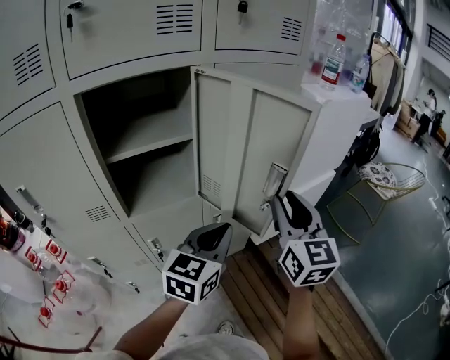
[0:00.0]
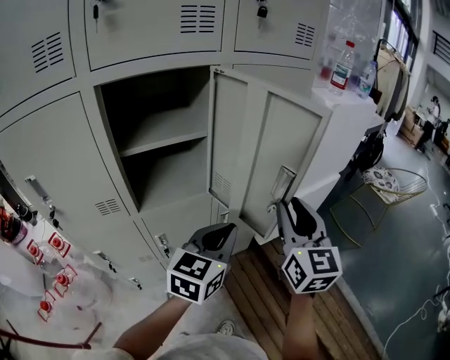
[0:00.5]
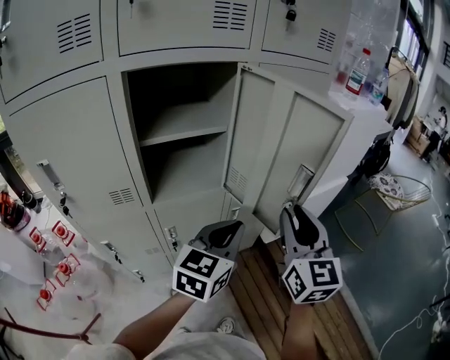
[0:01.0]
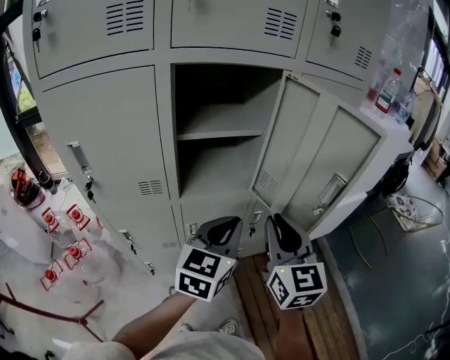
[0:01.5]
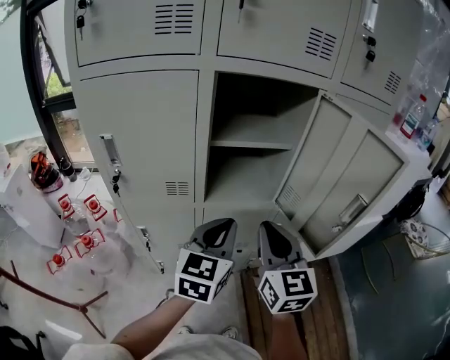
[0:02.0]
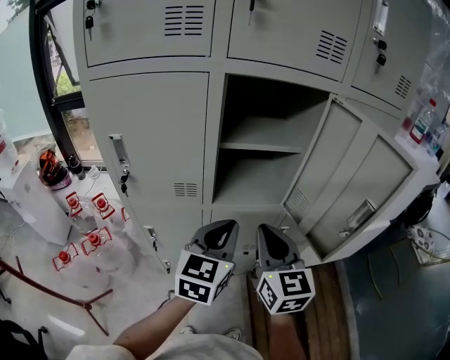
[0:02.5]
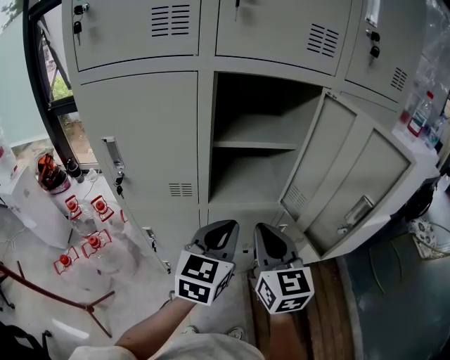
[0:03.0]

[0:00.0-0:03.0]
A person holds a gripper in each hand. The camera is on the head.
0:00.0 to 0:01.5: The right gripper shifts about 15 cm to the left and backward. The left gripper is displaced to the left by some 10 cm.
0:01.5 to 0:03.0: The grippers both shift to the left by roughly 10 cm.

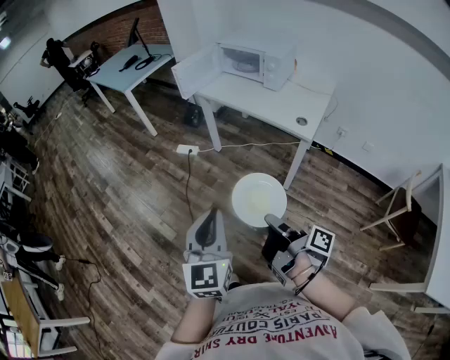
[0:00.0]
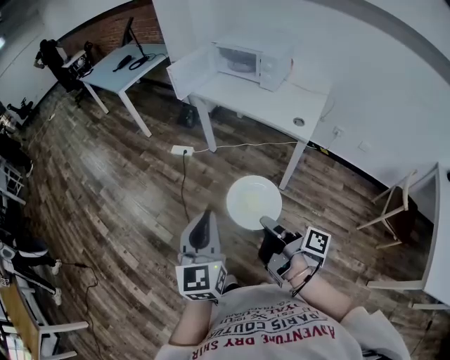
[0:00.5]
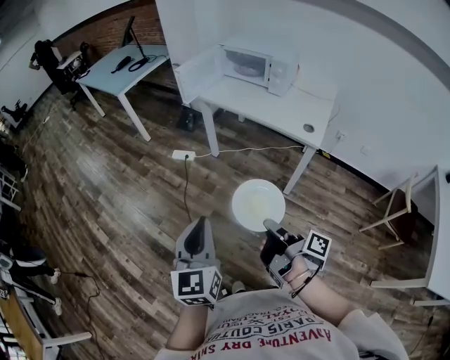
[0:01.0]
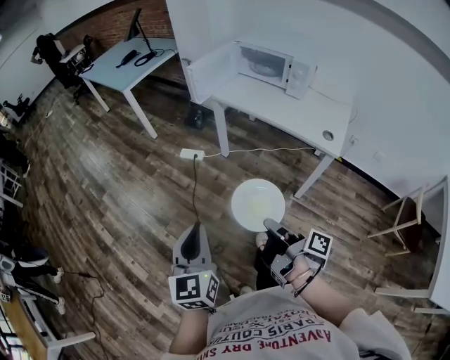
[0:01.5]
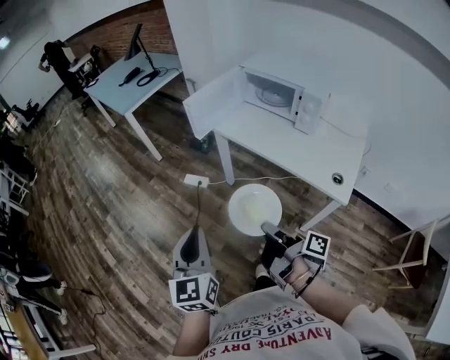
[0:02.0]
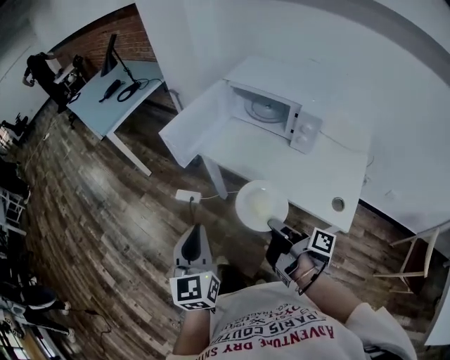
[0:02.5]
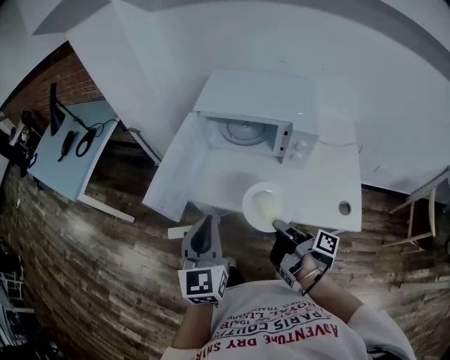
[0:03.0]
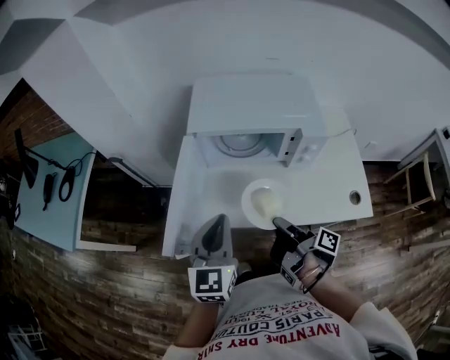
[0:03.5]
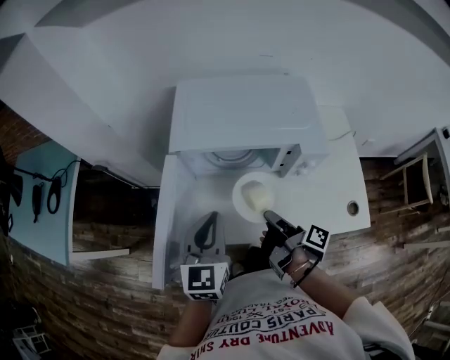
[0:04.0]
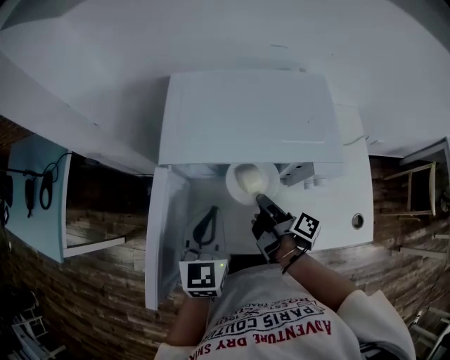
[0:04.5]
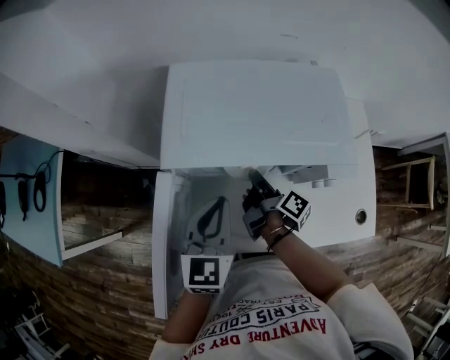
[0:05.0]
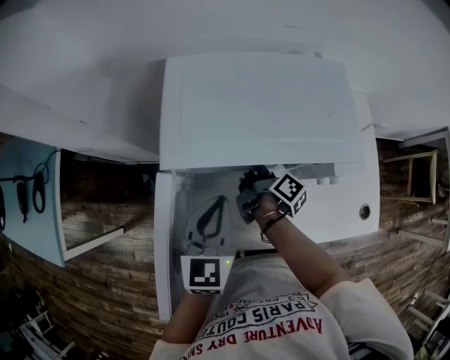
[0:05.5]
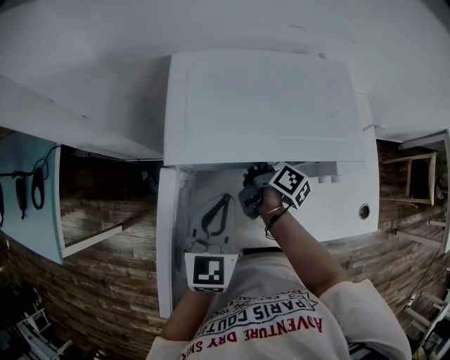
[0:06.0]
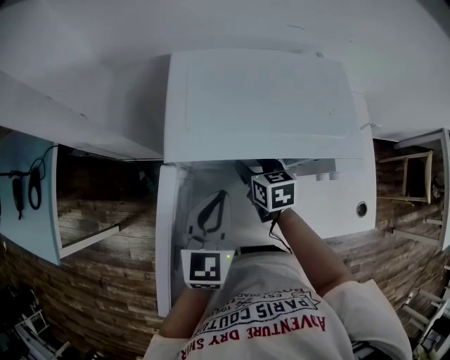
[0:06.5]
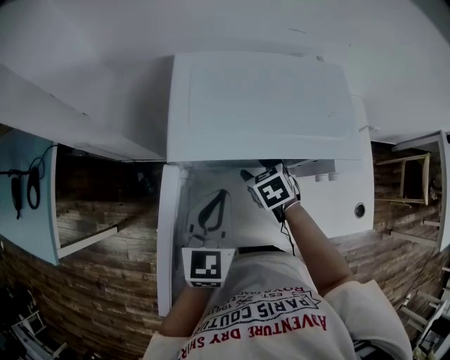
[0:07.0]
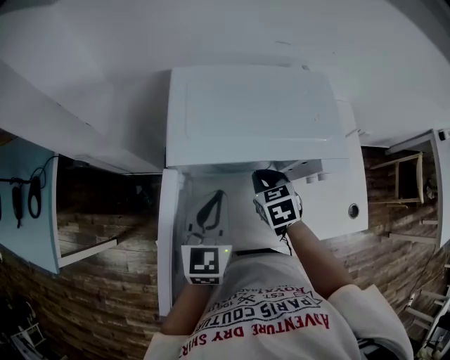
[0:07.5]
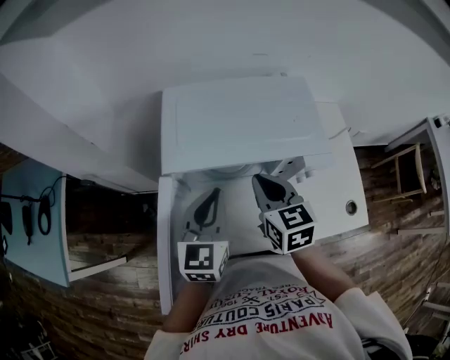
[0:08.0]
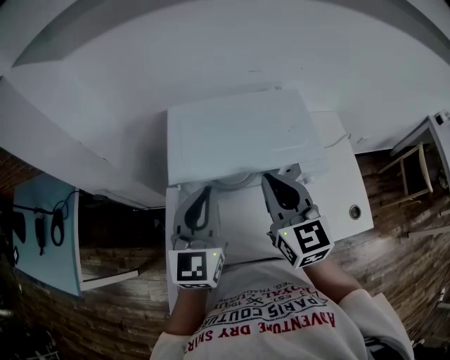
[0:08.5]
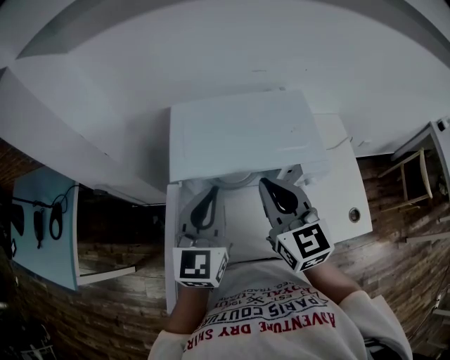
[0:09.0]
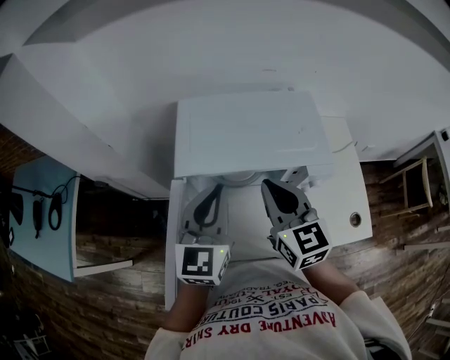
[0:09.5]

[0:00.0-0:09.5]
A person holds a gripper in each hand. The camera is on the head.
0:00.0 to 0:02.0: The left gripper changes place by about 35 cm.
0:02.0 to 0:04.0: The left gripper moves about 60 cm, and turns by approximately 50 degrees.
0:04.0 to 0:05.5: The left gripper moves roughly 10 cm.
0:07.5 to 0:09.5: The left gripper travels upward by some 10 cm.

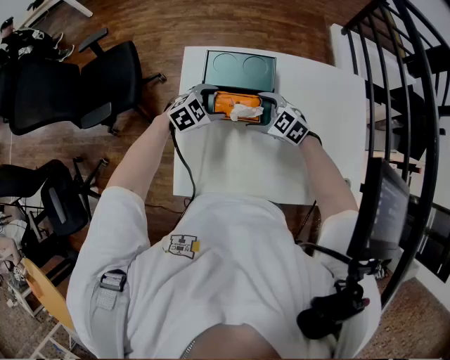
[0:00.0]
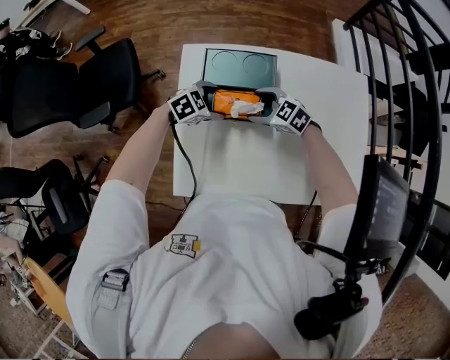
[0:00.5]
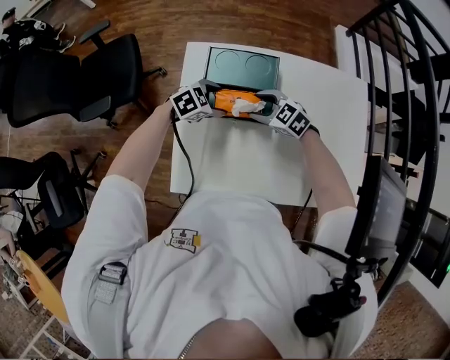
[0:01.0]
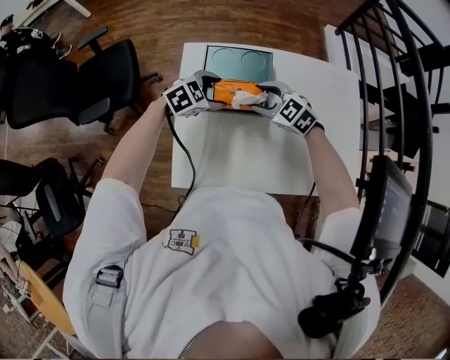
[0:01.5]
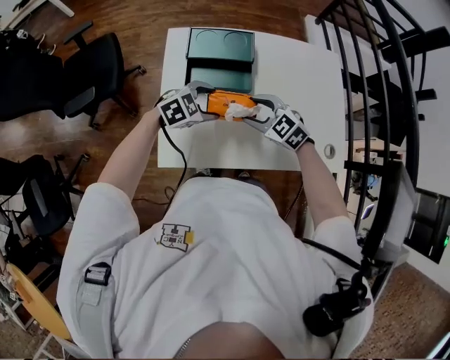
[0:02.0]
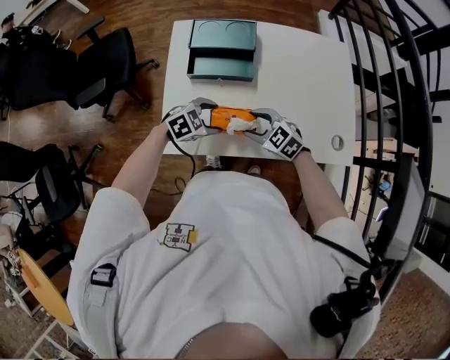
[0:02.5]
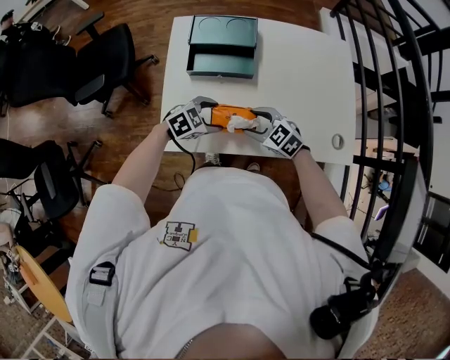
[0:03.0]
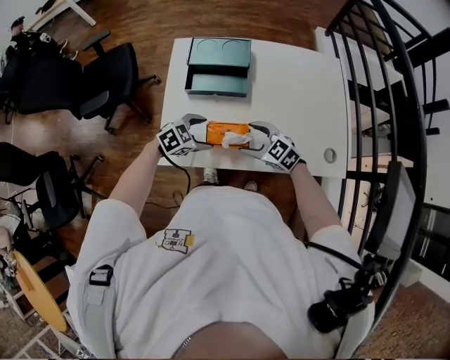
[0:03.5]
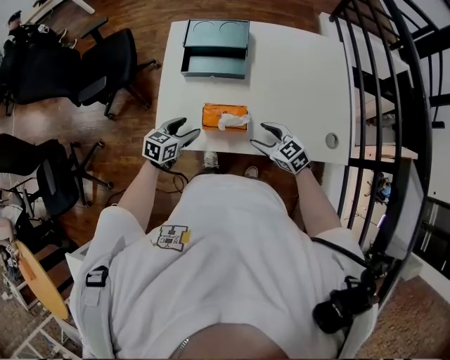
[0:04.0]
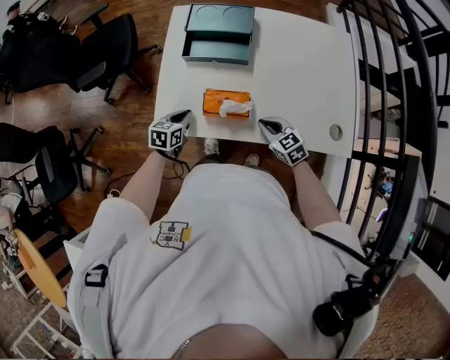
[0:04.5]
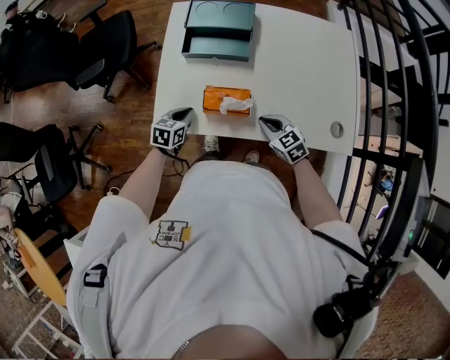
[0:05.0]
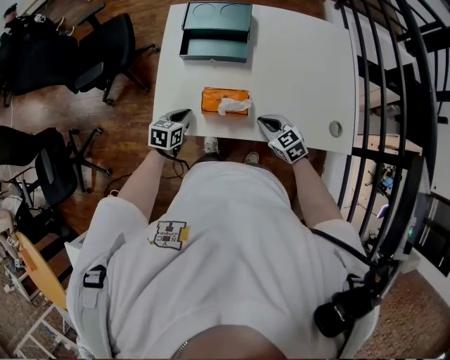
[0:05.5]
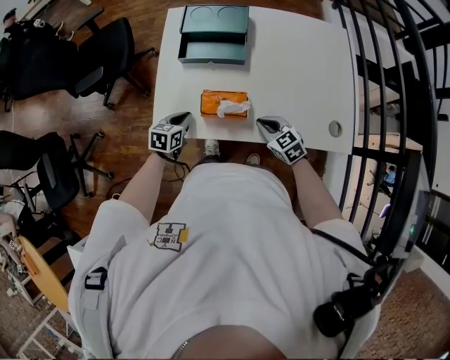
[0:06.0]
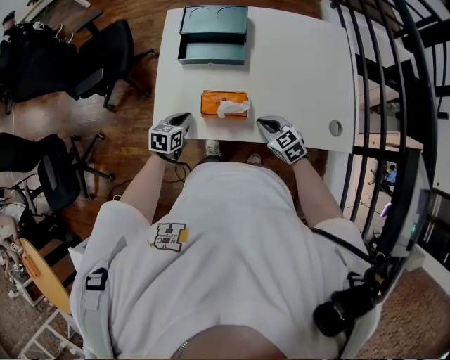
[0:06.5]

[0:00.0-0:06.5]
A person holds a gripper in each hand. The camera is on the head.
0:00.0 to 0:02.0: The left gripper ends up some 15 cm from where it was. Meanwhile the right gripper ends up roughly 15 cm from where it was, and closes up.
0:02.0 to 0:04.5: The right gripper ends up roughly 20 cm from where it was, and closes its fingers, while the left gripper changes place by roughly 20 cm, rotates around the line of its fingers by approximately 50 degrees, counterclockwise from behind, and closes.
0:04.5 to 0:06.5: Both grippers stay about where they are.

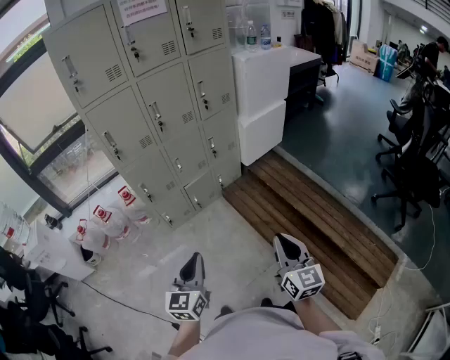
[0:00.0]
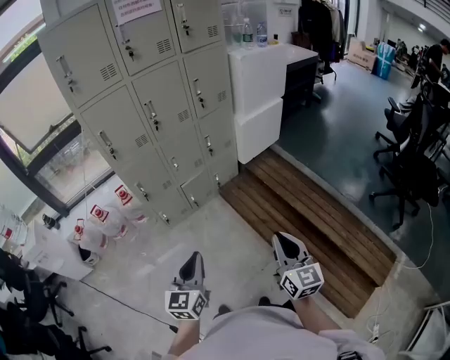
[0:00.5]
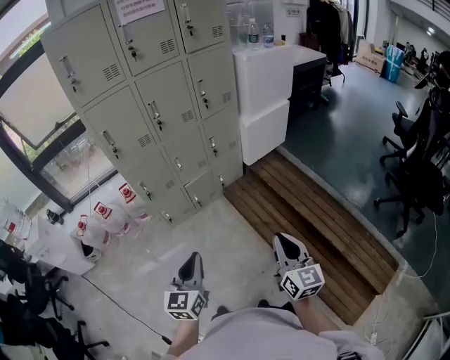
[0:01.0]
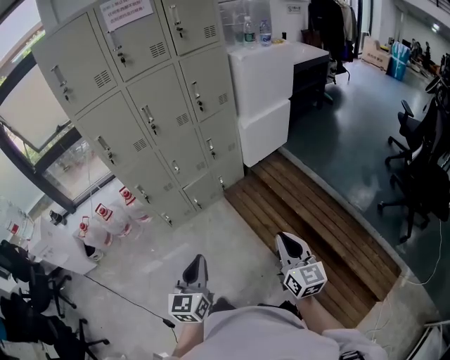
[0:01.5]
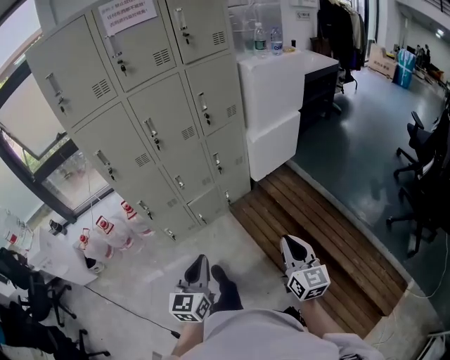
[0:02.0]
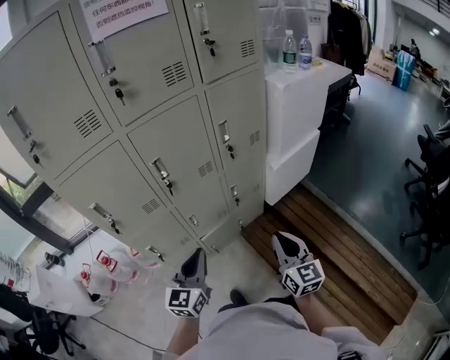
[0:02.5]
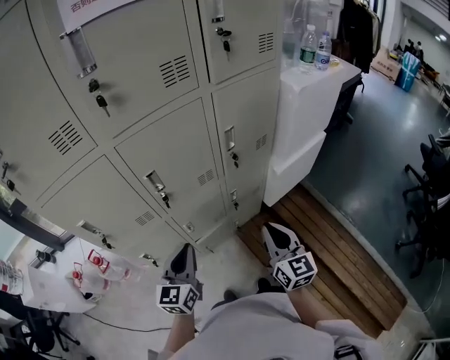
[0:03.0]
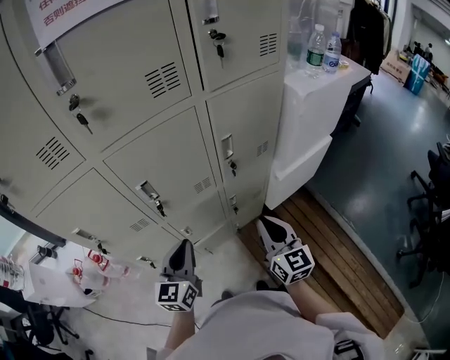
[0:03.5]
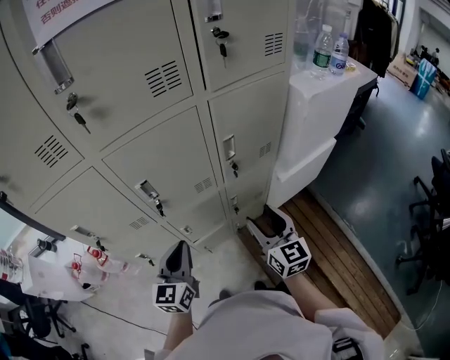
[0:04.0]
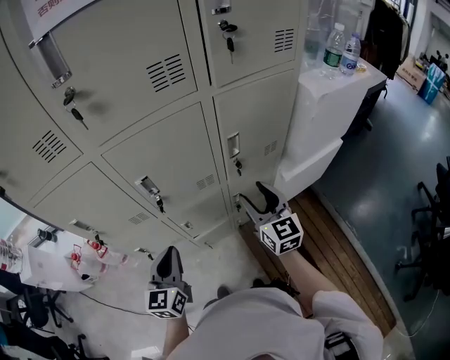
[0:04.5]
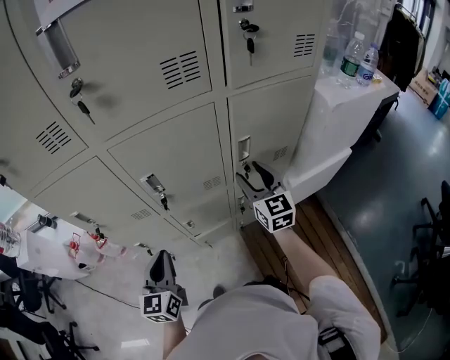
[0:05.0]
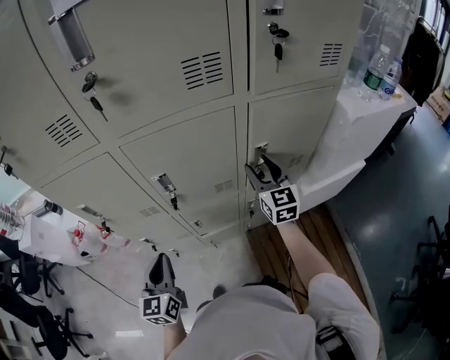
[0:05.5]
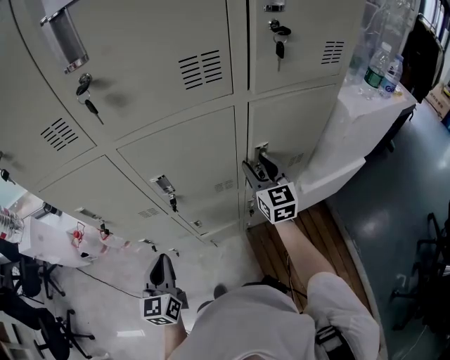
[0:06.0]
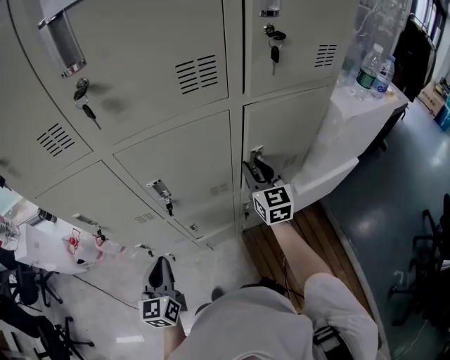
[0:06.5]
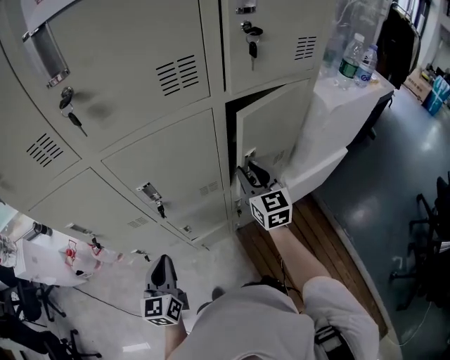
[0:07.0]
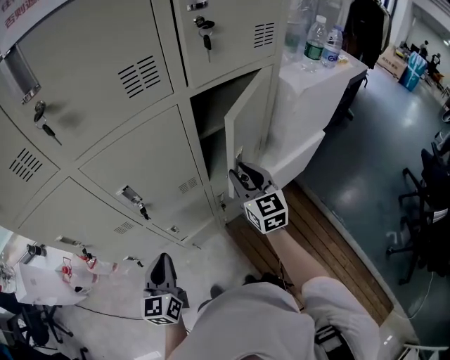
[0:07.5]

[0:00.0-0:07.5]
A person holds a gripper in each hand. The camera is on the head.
0:00.0 to 0:02.0: Both grippers move forward and to the right, roughly 20 cm.
0:02.0 to 0:04.0: The two grippers travel together, forward, about 50 cm. The right gripper opens its fingers.
0:04.0 to 0:05.5: The right gripper travels forward by some 20 cm; the left gripper heads to the left, covering some 10 cm, and changes its angle by some 20 degrees.
0:05.5 to 0:07.5: The left gripper travels to the right by approximately 5 cm; the right gripper goes roughly 10 cm backward, and closes up.
